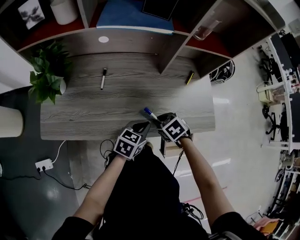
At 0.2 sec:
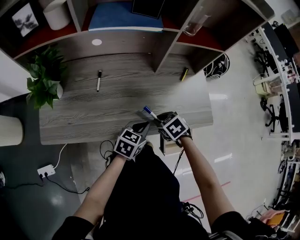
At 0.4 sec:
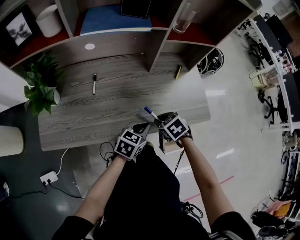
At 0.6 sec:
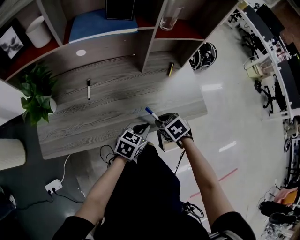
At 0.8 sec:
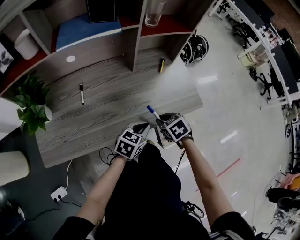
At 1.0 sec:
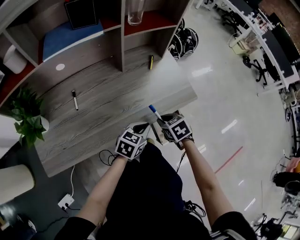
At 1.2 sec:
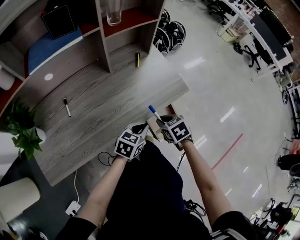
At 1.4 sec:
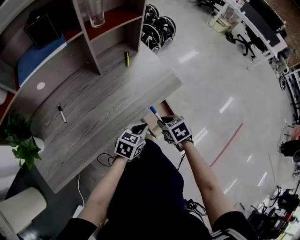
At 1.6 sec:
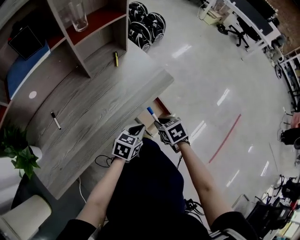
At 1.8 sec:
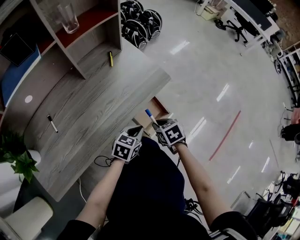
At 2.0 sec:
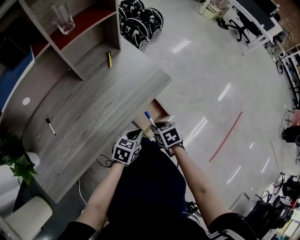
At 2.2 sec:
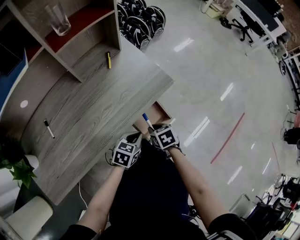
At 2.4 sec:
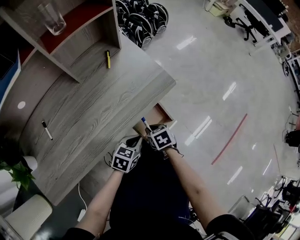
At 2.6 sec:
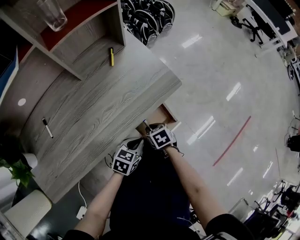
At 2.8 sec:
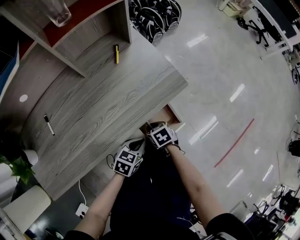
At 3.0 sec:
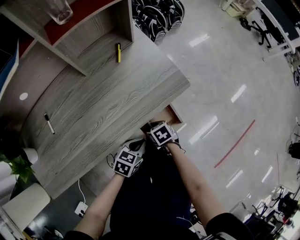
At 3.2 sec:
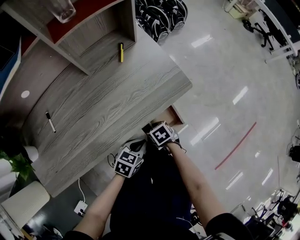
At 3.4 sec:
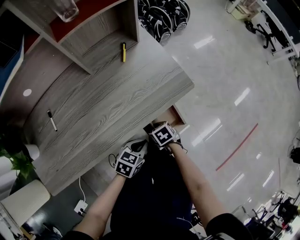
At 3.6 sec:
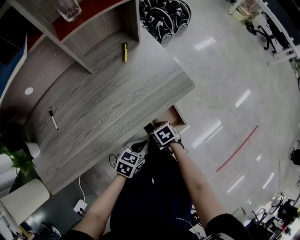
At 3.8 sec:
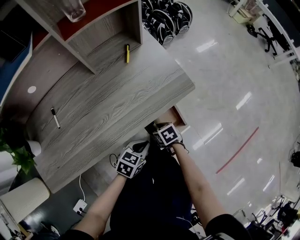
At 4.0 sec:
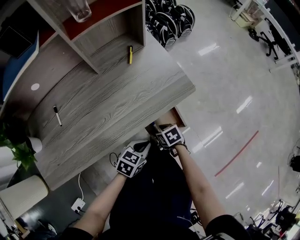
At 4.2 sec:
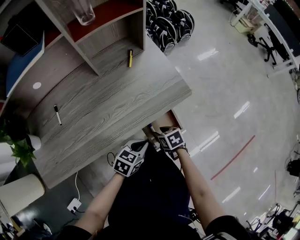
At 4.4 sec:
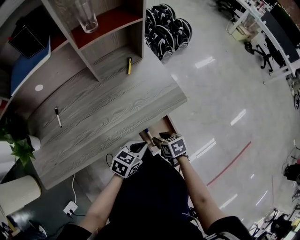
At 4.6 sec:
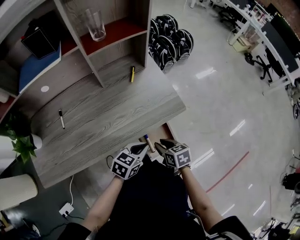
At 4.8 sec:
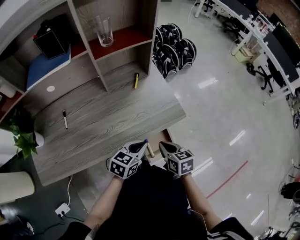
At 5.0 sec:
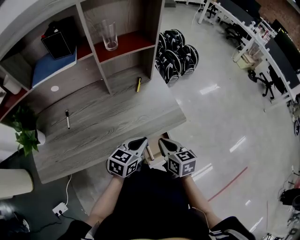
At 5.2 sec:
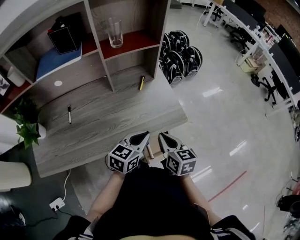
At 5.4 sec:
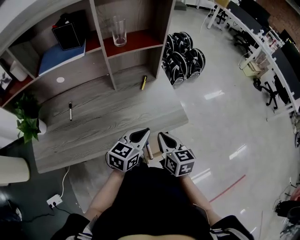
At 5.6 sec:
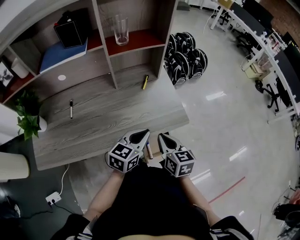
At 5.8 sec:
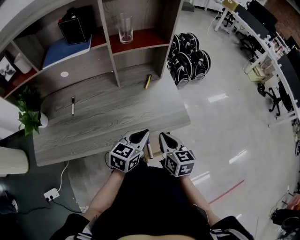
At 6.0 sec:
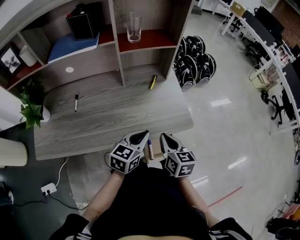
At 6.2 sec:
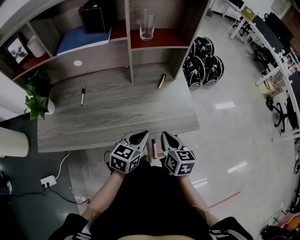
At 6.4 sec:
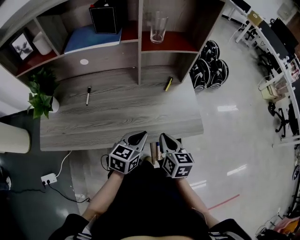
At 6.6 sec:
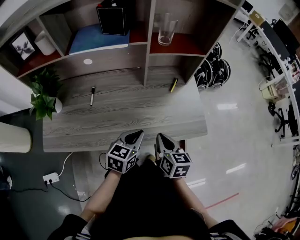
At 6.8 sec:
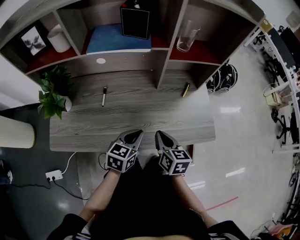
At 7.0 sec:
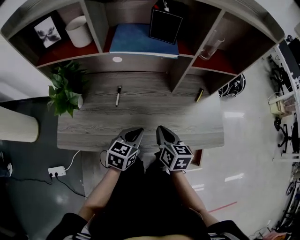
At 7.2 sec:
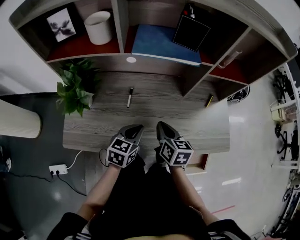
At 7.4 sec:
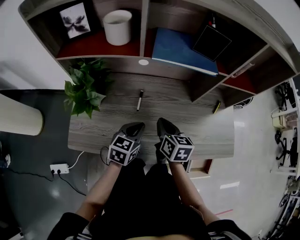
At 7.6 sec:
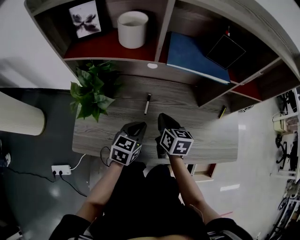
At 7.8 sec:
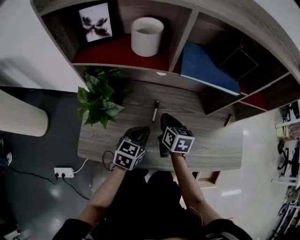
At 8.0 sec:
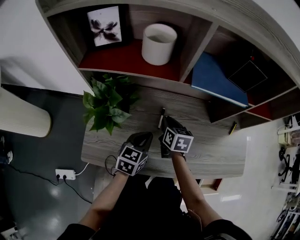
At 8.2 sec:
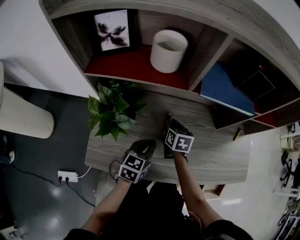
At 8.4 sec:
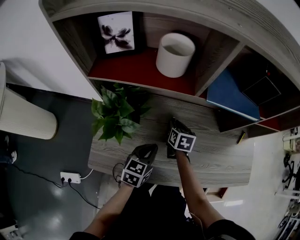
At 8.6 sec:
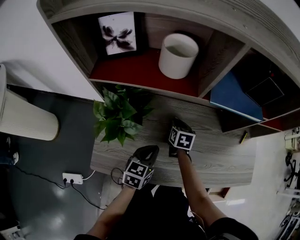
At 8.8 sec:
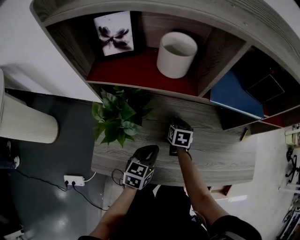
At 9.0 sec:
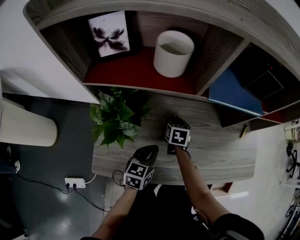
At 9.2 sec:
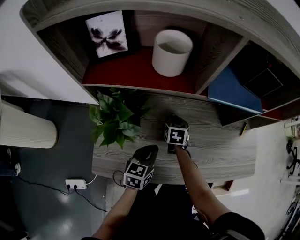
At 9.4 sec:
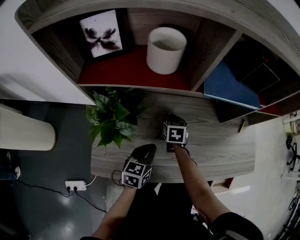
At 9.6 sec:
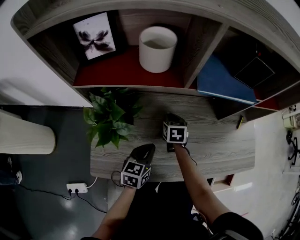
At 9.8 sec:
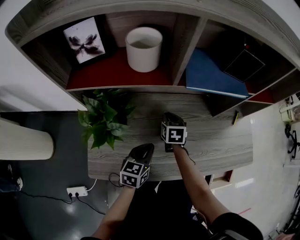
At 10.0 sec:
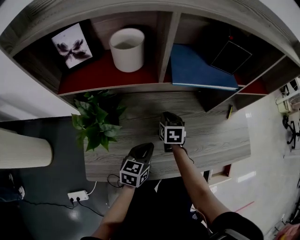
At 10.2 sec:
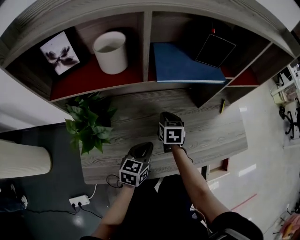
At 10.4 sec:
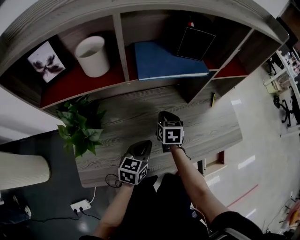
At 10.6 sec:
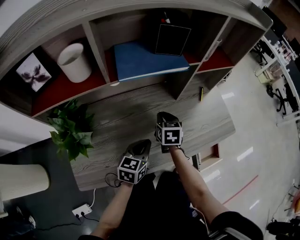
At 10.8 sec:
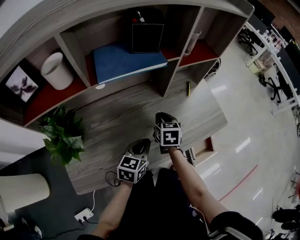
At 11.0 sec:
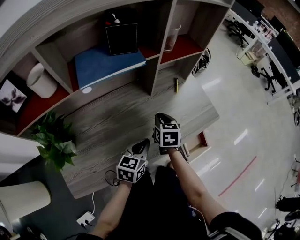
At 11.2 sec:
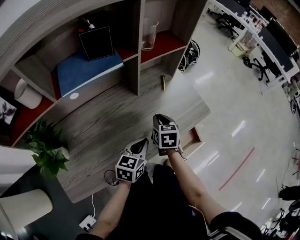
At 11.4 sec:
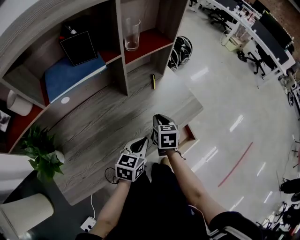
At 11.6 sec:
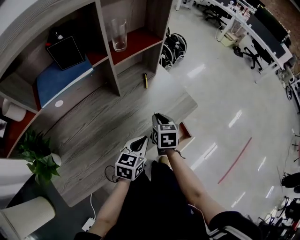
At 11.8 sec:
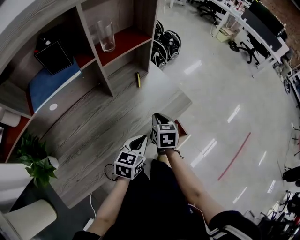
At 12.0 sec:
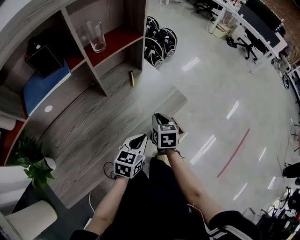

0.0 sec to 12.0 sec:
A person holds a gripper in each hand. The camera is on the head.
0.0 sec to 1.6 sec: The left gripper ends up some 15 cm from where it was, and turns by roughly 40 degrees; the right gripper changes place by some 20 cm, and rotates around the line of its fingers by approximately 50 degrees, clockwise from behind.
1.6 sec to 3.0 sec: The right gripper moves downward, some 15 cm. Meanwhile the left gripper shifts approximately 10 cm downward.
3.0 sec to 4.4 sec: Both grippers travel together upward, approximately 10 cm.
4.4 sec to 6.0 sec: The right gripper goes approximately 20 cm upward, rotates roughly 30 degrees, and closes its fingers. Meanwhile the left gripper heads upward and forward, covering some 15 cm, and rotates approximately 30 degrees.
6.0 sec to 7.6 sec: The two grippers go about 40 cm to the left. The left gripper swivels some 20 degrees.
7.6 sec to 9.0 sec: The left gripper is displaced to the left by some 5 cm, while the right gripper heads downward, forward and to the left, covering approximately 15 cm, and swivels about 20 degrees.
9.0 sec to 10.4 sec: The right gripper shifts roughly 15 cm to the right and upward, while the left gripper shifts some 10 cm to the right.
10.4 sec to 12.0 sec: The left gripper ends up approximately 30 cm from where it was, and swivels about 30 degrees. Meanwhile the right gripper changes place by roughly 35 cm, and changes its angle by approximately 30 degrees.

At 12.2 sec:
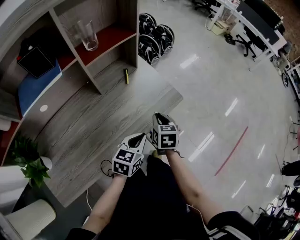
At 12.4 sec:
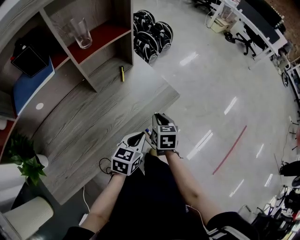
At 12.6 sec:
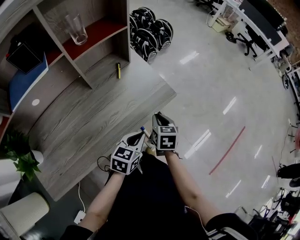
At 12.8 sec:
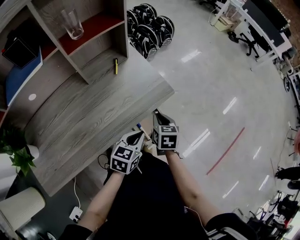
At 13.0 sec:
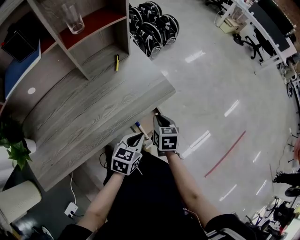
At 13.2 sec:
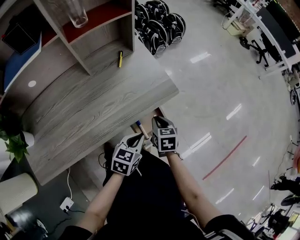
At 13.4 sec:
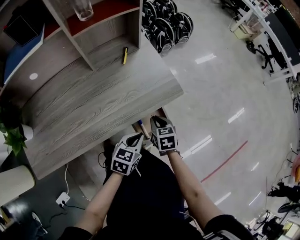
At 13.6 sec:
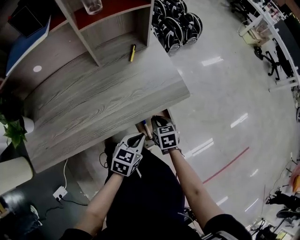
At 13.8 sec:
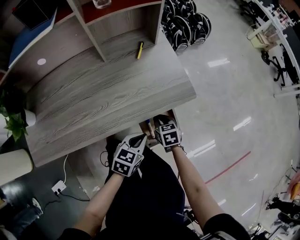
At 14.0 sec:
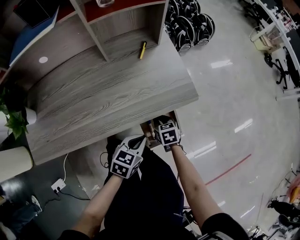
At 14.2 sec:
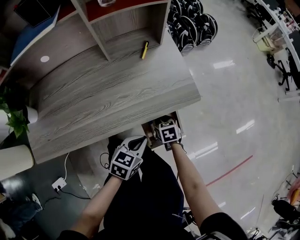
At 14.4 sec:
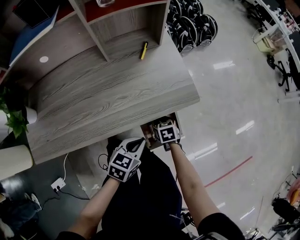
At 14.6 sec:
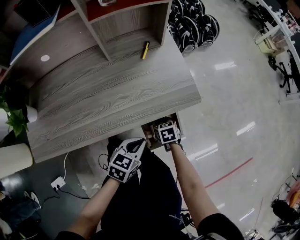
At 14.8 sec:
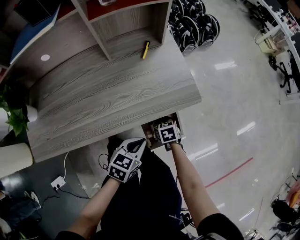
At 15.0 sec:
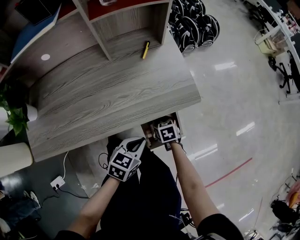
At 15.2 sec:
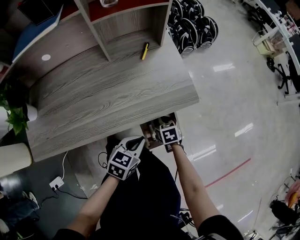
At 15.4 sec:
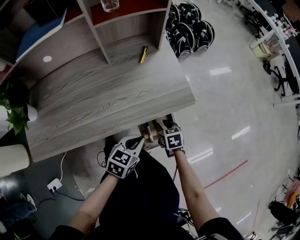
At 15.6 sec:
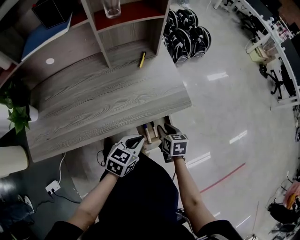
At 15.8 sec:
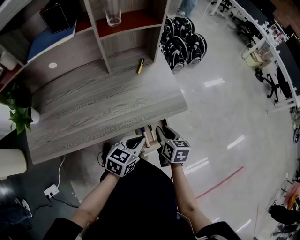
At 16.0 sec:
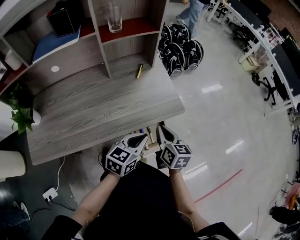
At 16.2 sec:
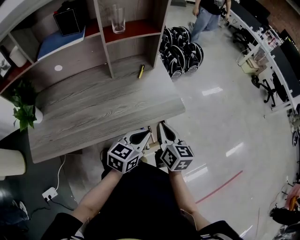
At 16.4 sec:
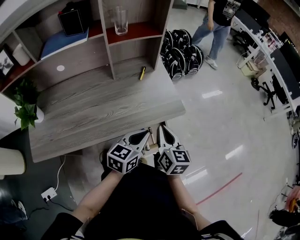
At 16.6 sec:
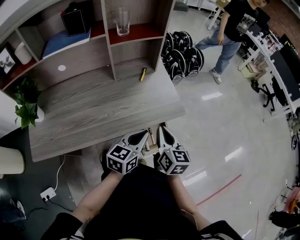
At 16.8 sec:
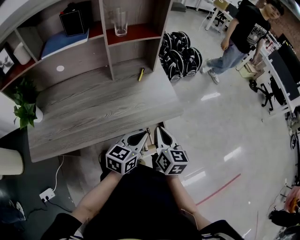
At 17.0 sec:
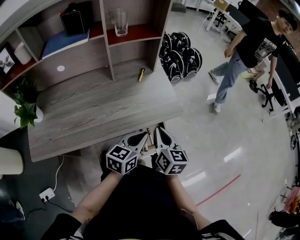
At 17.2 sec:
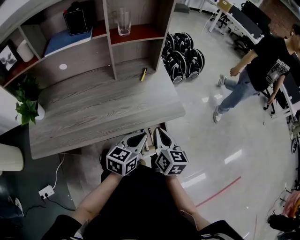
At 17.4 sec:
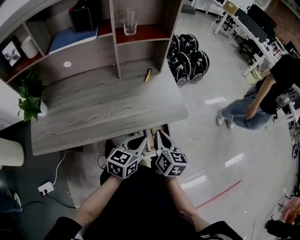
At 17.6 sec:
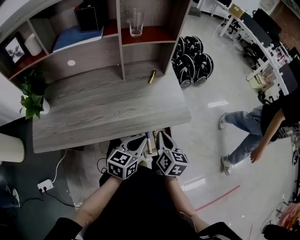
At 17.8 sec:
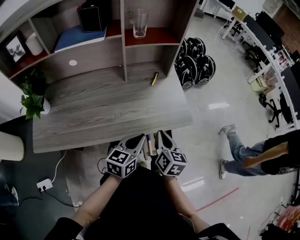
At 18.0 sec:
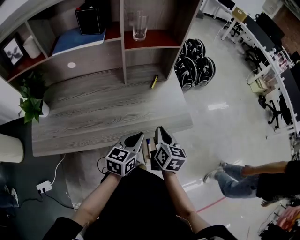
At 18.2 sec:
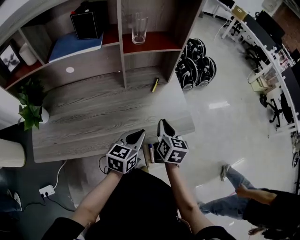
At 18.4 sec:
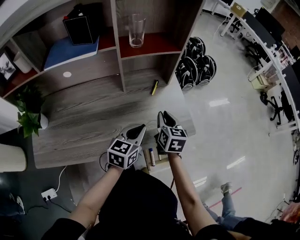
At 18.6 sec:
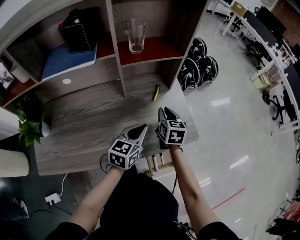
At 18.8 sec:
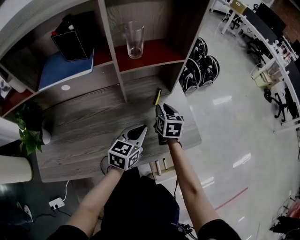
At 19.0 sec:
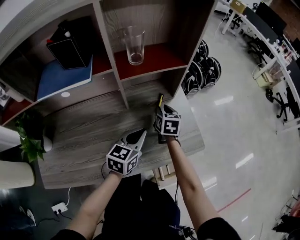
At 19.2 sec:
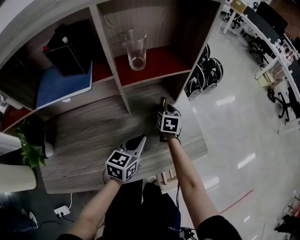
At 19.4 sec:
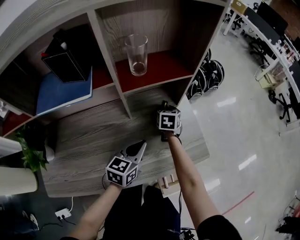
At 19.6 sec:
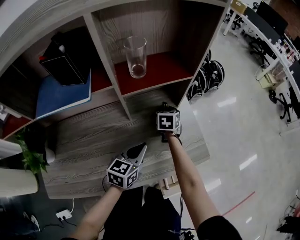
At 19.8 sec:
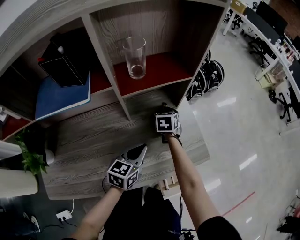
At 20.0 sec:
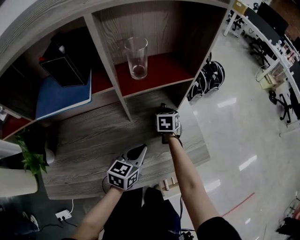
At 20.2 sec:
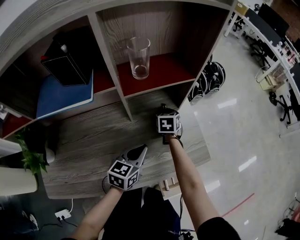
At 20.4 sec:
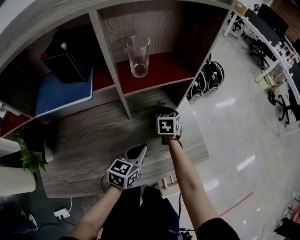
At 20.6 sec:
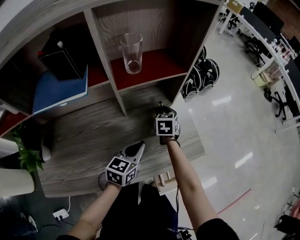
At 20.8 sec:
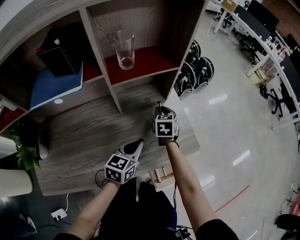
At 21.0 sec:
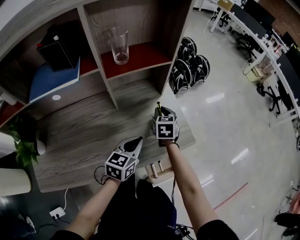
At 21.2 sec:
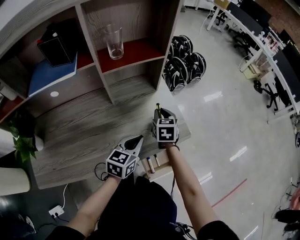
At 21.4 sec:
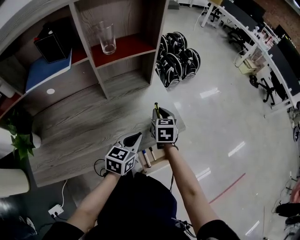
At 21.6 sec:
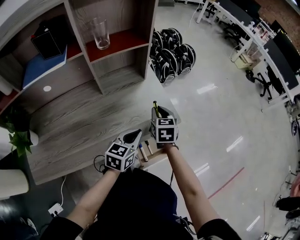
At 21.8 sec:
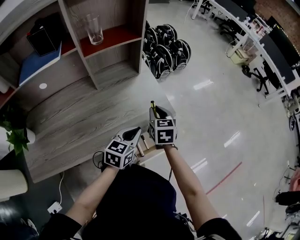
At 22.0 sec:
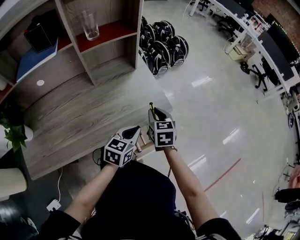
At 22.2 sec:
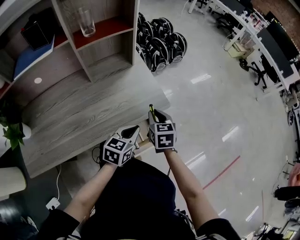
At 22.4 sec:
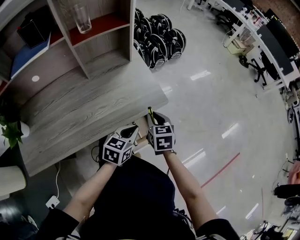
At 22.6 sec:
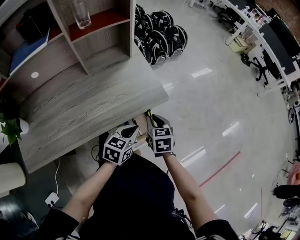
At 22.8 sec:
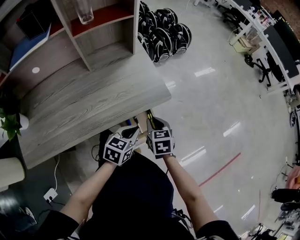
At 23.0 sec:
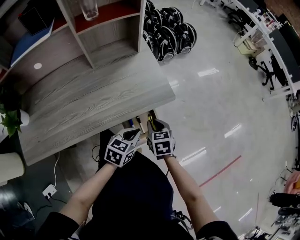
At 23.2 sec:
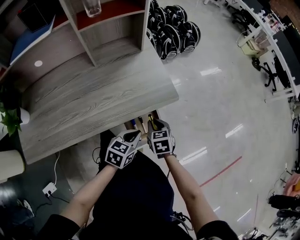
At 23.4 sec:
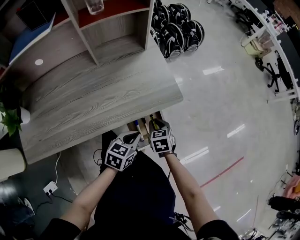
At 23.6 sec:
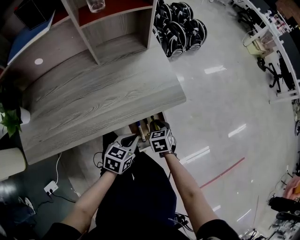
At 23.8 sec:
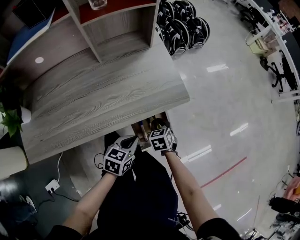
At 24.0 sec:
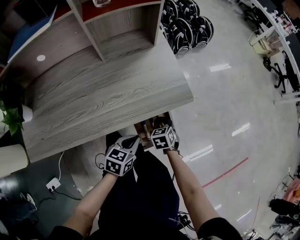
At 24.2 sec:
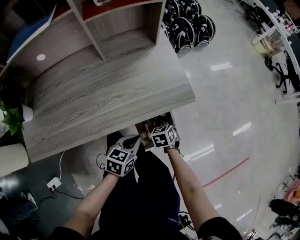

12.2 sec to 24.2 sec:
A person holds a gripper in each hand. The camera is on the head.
12.2 sec to 13.8 sec: The right gripper is displaced downward by roughly 15 cm, and swivels some 30 degrees. Meanwhile the left gripper heads downward and to the right, covering roughly 10 cm.
13.8 sec to 15.2 sec: The grippers make only small movements.
15.2 sec to 16.6 sec: The left gripper moves upward, roughly 10 cm, and rotates roughly 20 degrees, while the right gripper shifts roughly 25 cm upward, angles its fingers upward, by approximately 40 degrees, and closes up.
16.6 sec to 18.2 sec: The right gripper moves forward and to the left, about 10 cm. Meanwhile the left gripper shifts about 10 cm to the left and forward.
18.2 sec to 19.8 sec: The left gripper goes some 10 cm forward and to the left. The right gripper shifts roughly 25 cm forward and downward, and swivels some 30 degrees.
19.8 sec to 21.2 sec: The left gripper heads to the right, covering approximately 10 cm; the right gripper heads backward, to the right and upward, covering roughly 15 cm.
21.2 sec to 22.6 sec: The left gripper travels to the right, backward and downward by roughly 15 cm. Meanwhile the right gripper travels backward and to the right by some 20 cm.
22.6 sec to 24.2 sec: The left gripper shifts approximately 10 cm downward, to the left and backward; the right gripper moves downward, about 15 cm, and turns by approximately 20 degrees.
